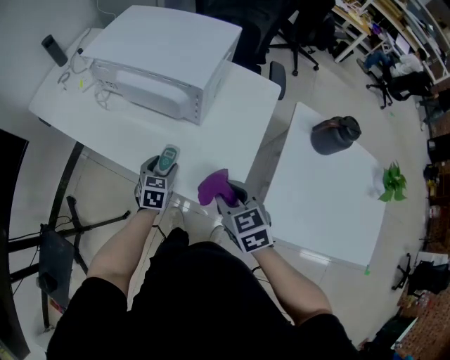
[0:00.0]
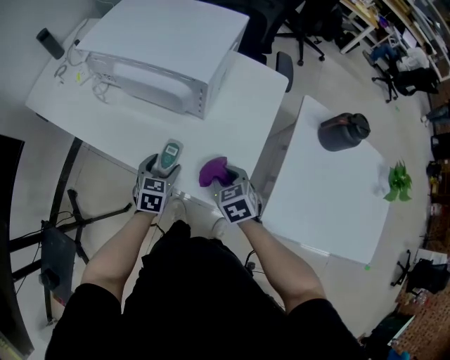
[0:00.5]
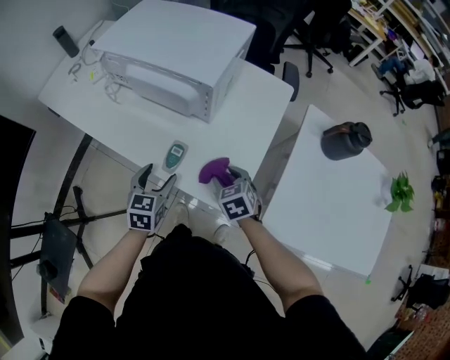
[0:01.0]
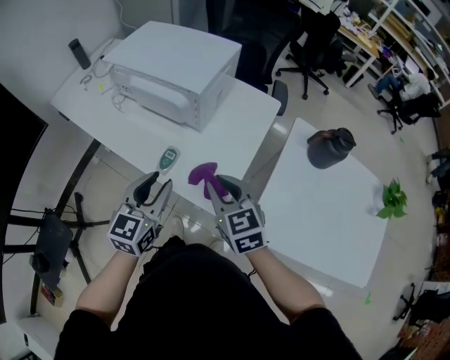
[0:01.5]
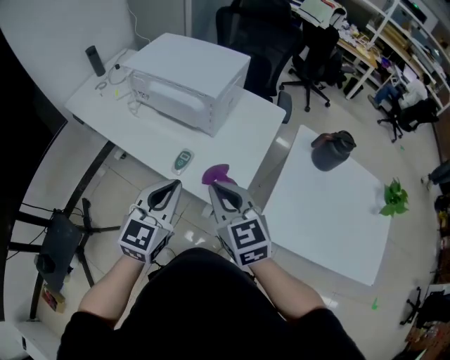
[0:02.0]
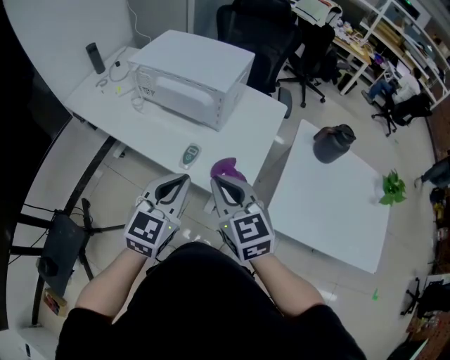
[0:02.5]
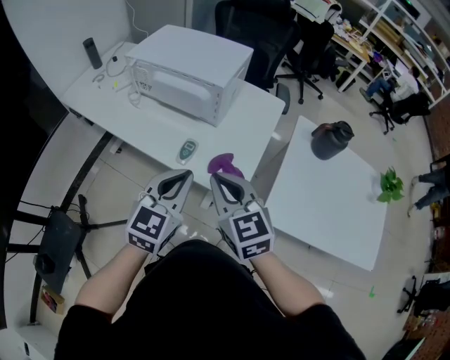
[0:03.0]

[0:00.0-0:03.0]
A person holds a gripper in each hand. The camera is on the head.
0:00.0 to 0:01.5: The right gripper shifts about 5 cm upward, while the left gripper goes some 25 cm upward and backward, and rotates approximately 30 degrees.
0:01.5 to 0:03.0: The right gripper shifts about 15 cm to the left, upward and backward. Meanwhile the left gripper shifts approximately 10 cm backward and upward, and closes its fingers.

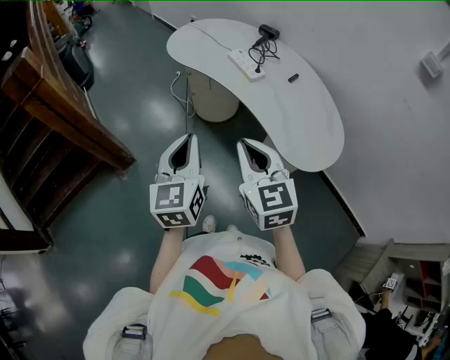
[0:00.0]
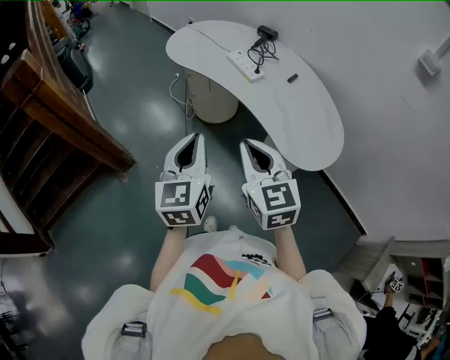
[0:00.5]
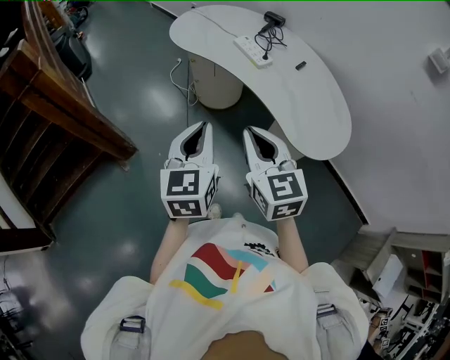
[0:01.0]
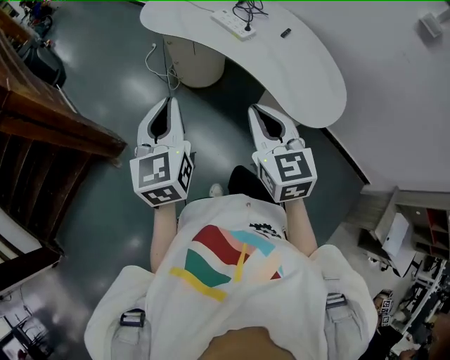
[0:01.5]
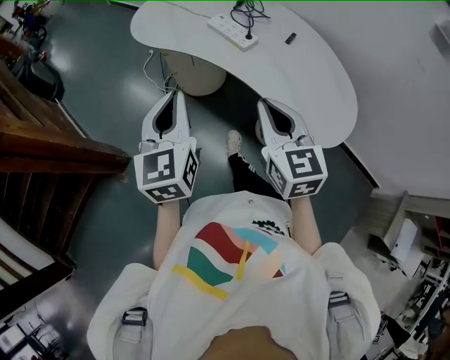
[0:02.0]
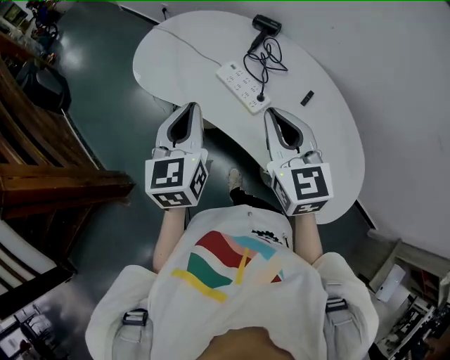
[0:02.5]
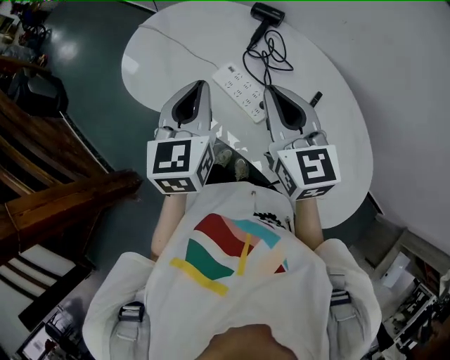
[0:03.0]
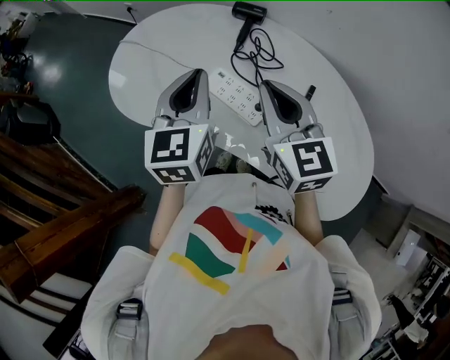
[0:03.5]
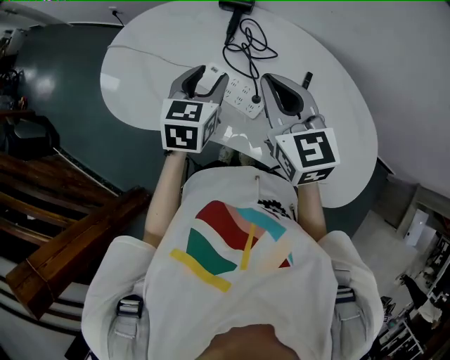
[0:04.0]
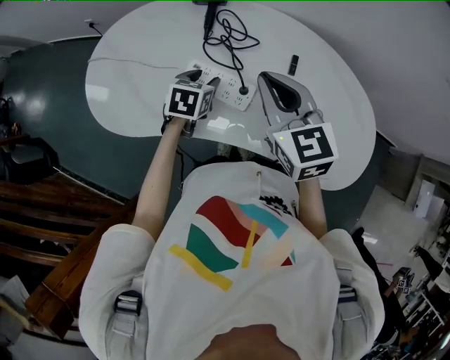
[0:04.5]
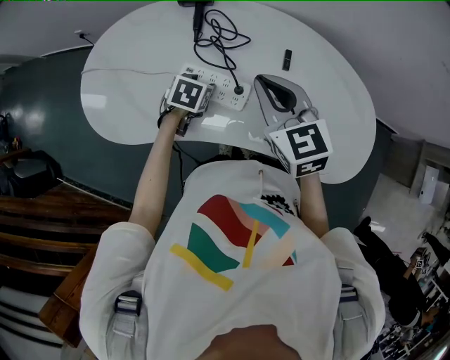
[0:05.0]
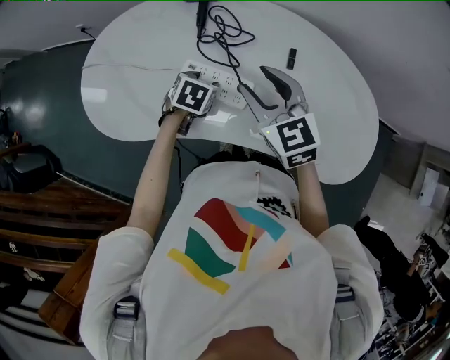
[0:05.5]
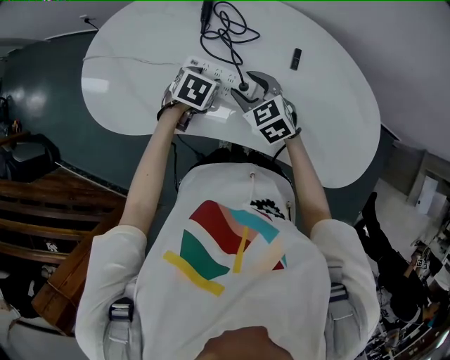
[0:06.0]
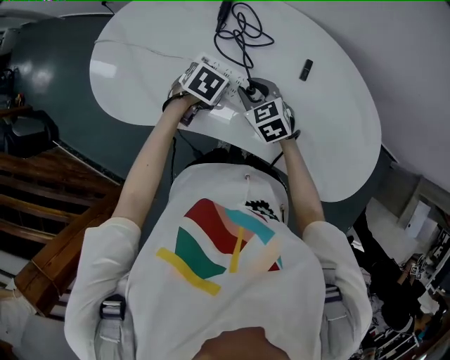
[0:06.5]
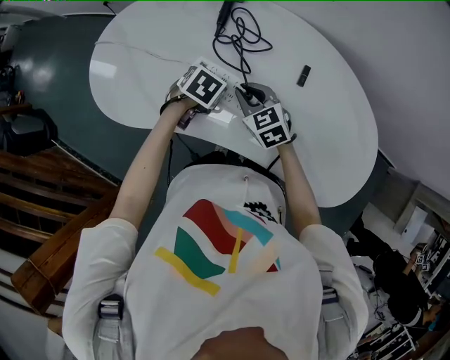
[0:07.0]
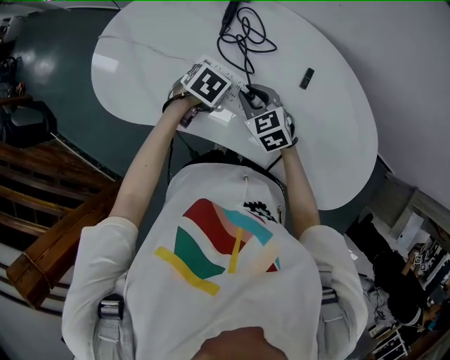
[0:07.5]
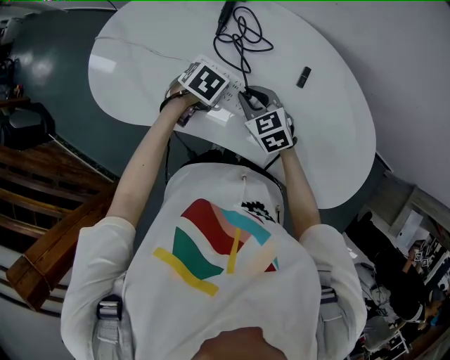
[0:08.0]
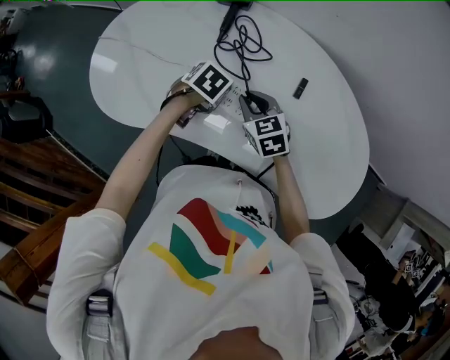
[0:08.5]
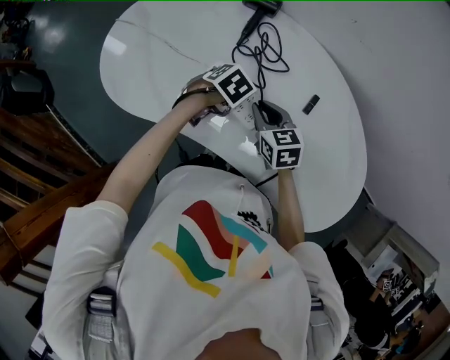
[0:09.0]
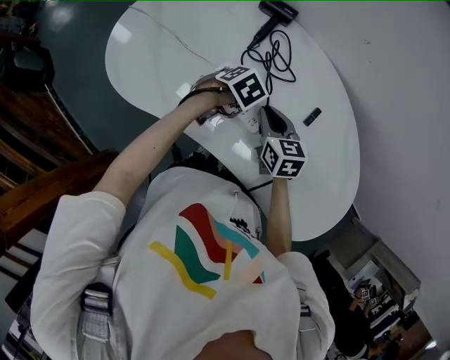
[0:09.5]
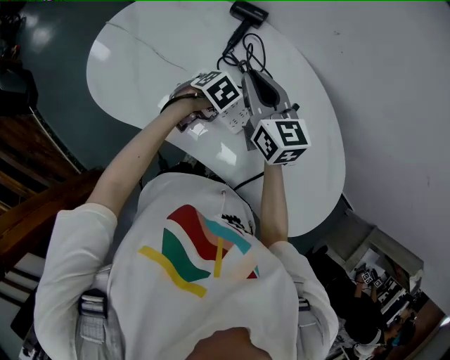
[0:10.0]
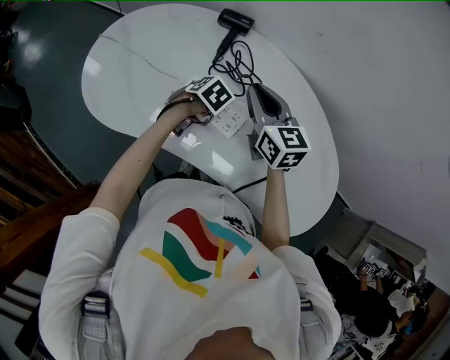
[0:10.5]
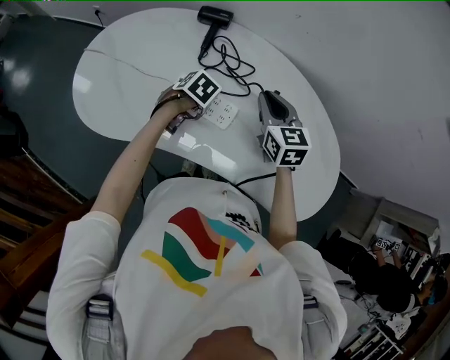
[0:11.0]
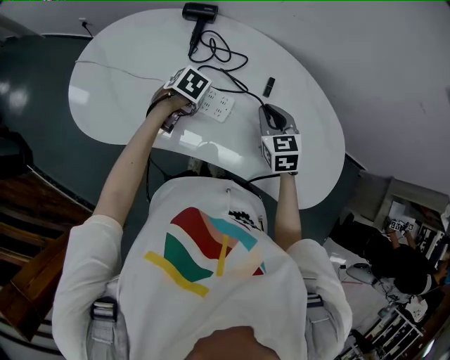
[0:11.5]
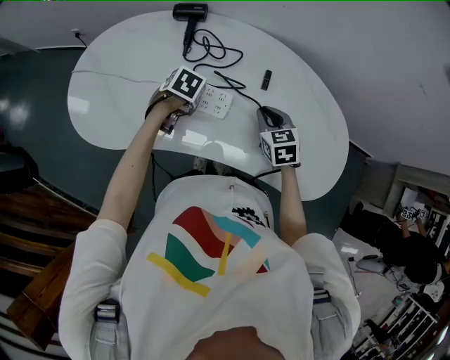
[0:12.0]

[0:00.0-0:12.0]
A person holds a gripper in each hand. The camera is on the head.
0:00.0 to 0:02.0: Both grippers move forward, roughly 15 cm.
0:02.0 to 0:04.0: The two grippers go some 40 cm forward. The left gripper changes its angle by about 40 degrees, and opens.
0:04.0 to 0:06.0: The grippers both shift downward by about 20 cm. The right gripper swivels about 30 degrees, and opens up; the left gripper tilts its fingers about 30 degrees downward.
0:06.0 to 0:08.0: The right gripper closes.
0:08.0 to 0:10.0: The right gripper shifts approximately 15 cm upward, and rotates approximately 30 degrees.
0:10.0 to 0:12.0: The right gripper ends up roughly 25 cm from where it was, and tilts its fingers about 30 degrees downward.

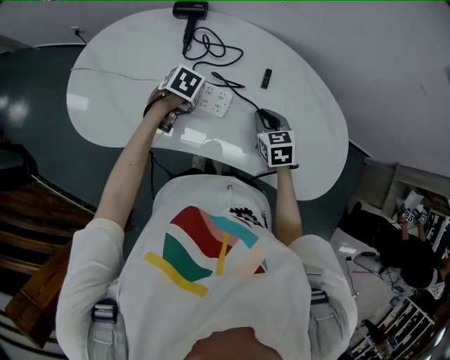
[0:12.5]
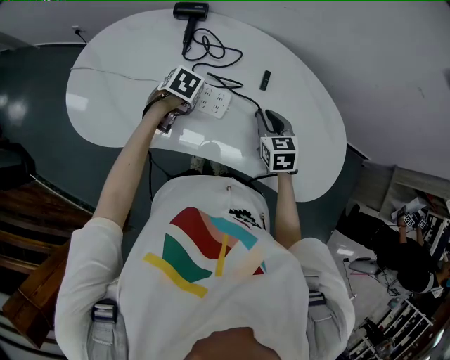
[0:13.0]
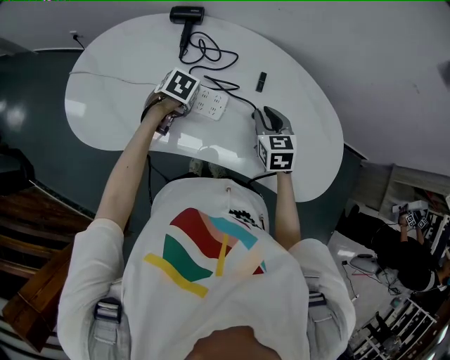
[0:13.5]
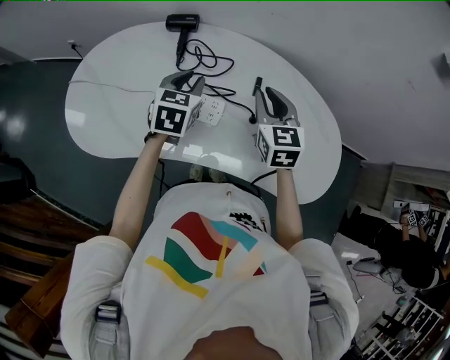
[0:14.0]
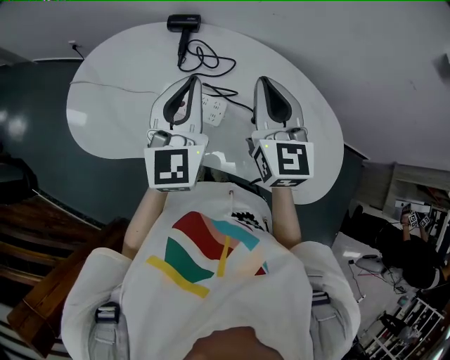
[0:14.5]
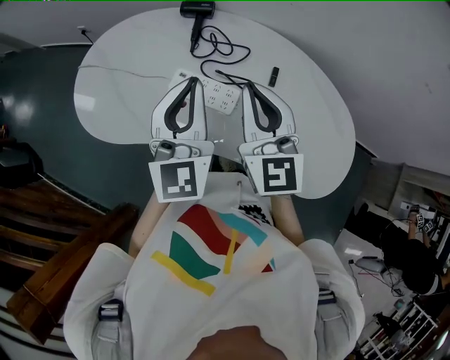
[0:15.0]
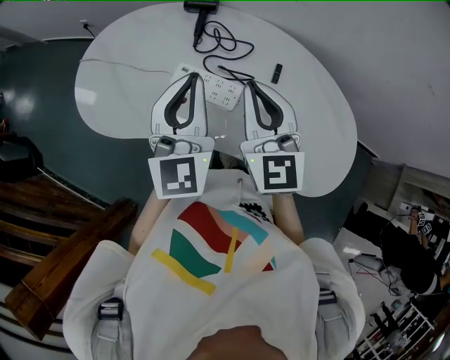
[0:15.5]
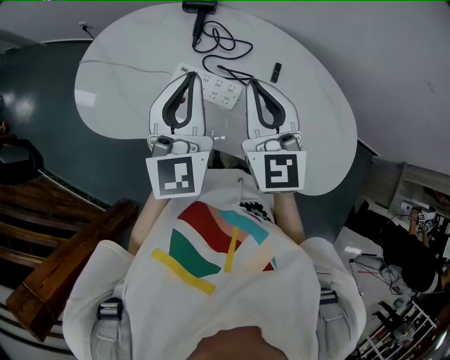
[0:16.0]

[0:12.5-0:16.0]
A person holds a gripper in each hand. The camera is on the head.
0:12.5 to 0:14.5: Both grippers move upward, about 30 cm. The left gripper angles its fingers upward, by approximately 70 degrees, and closes. Meanwhile the right gripper points its fingers about 40 degrees further upward.
0:14.5 to 0:16.0: The right gripper goes roughly 5 cm to the left.

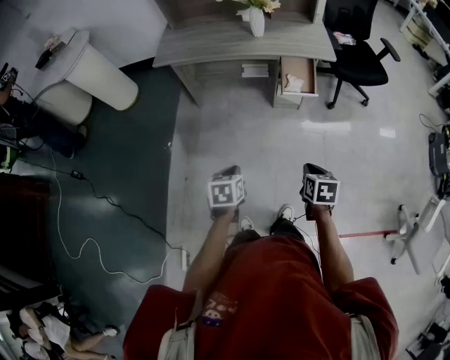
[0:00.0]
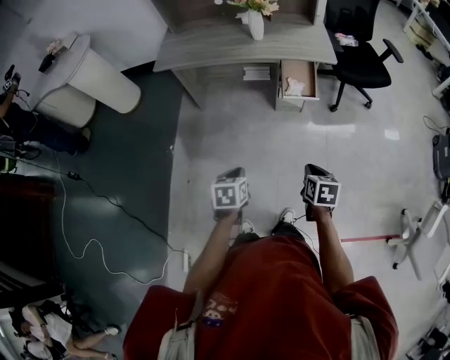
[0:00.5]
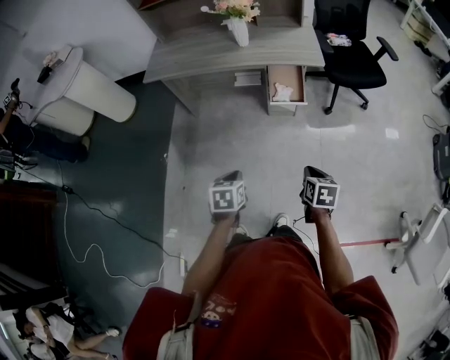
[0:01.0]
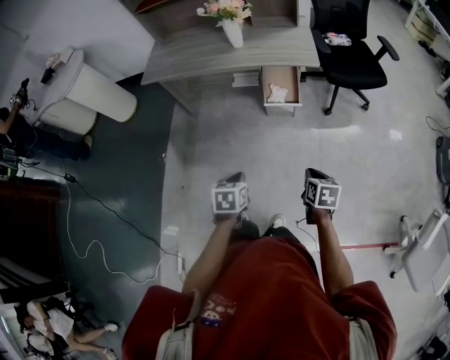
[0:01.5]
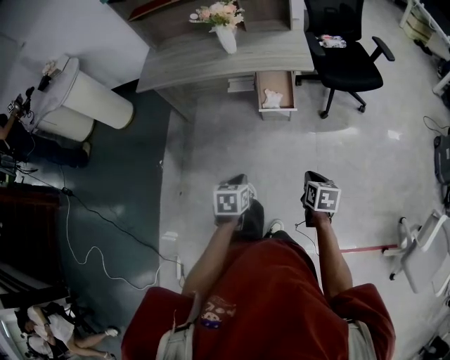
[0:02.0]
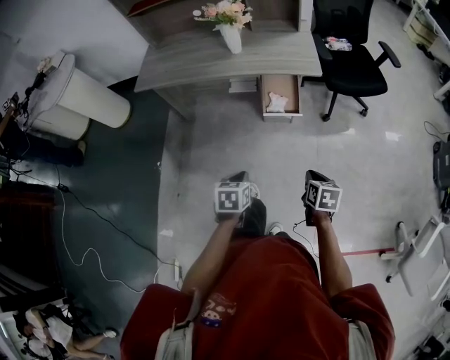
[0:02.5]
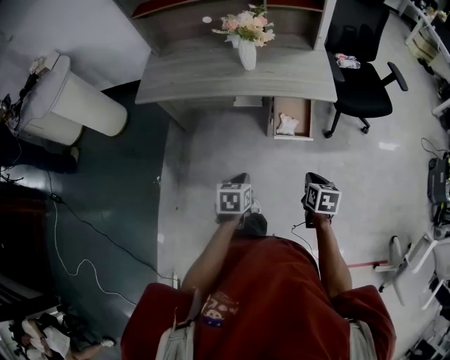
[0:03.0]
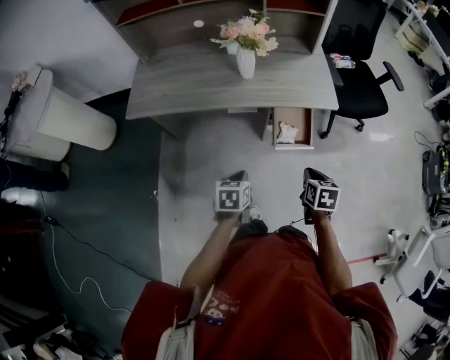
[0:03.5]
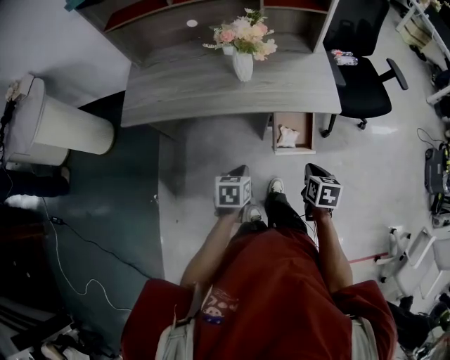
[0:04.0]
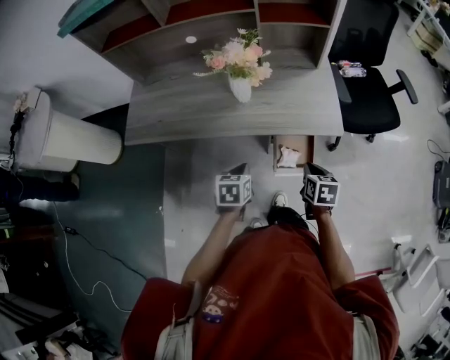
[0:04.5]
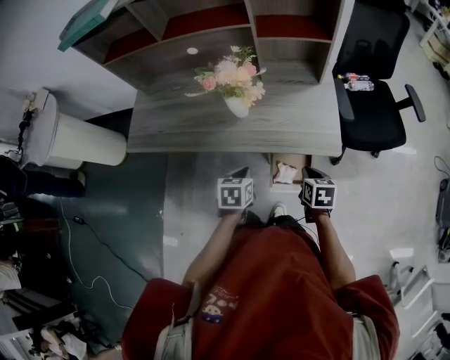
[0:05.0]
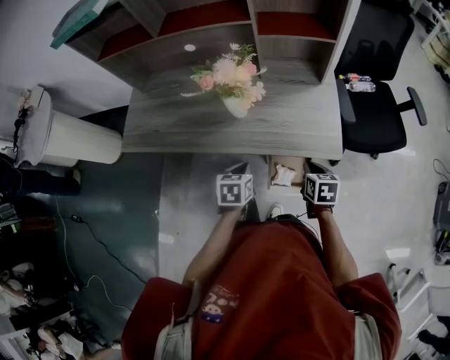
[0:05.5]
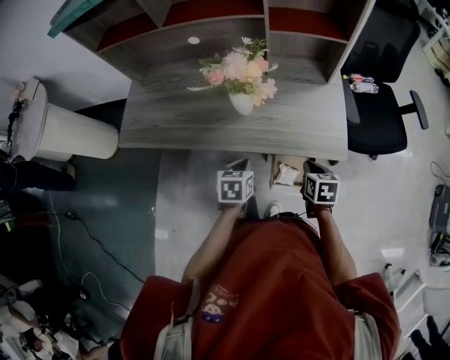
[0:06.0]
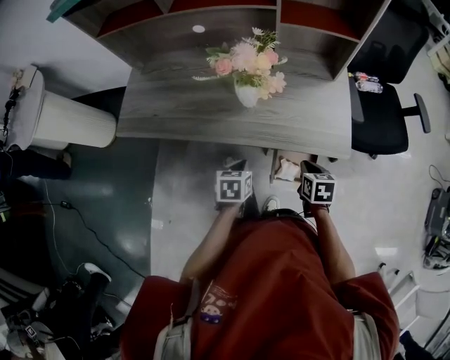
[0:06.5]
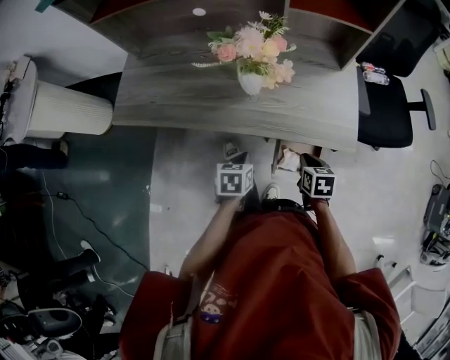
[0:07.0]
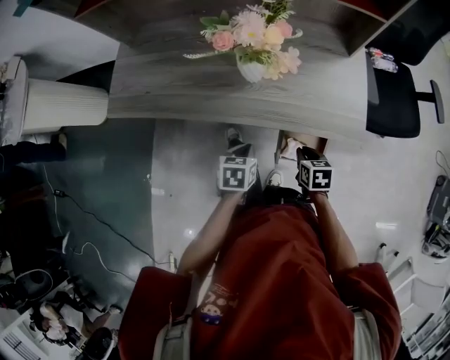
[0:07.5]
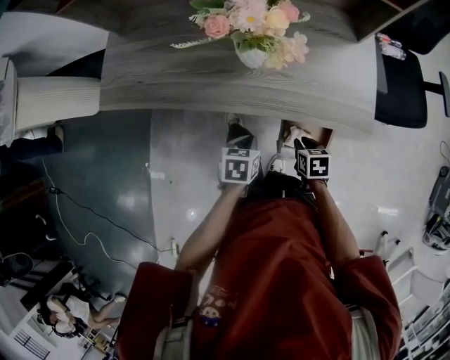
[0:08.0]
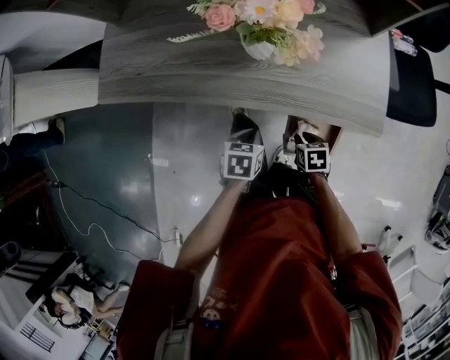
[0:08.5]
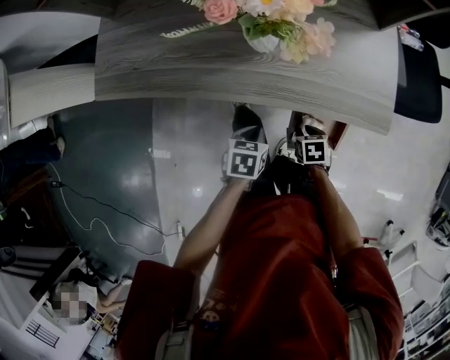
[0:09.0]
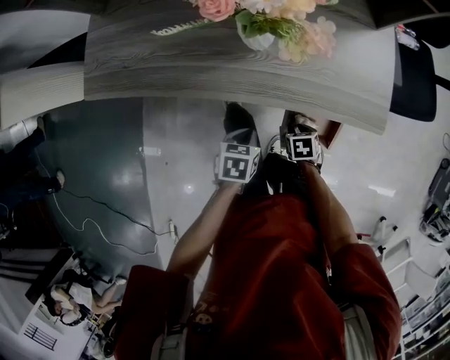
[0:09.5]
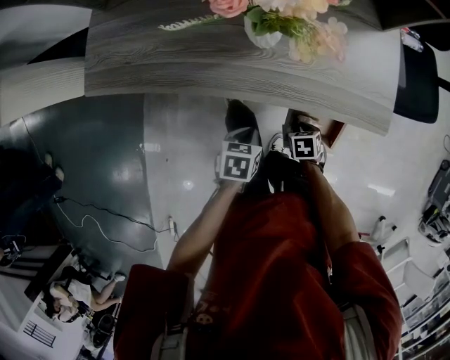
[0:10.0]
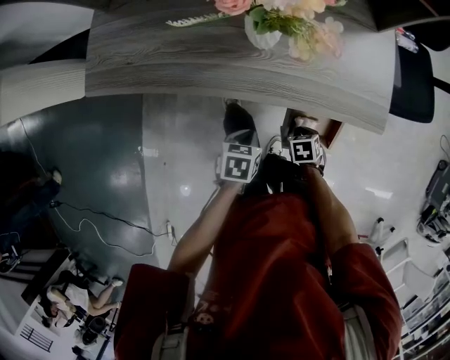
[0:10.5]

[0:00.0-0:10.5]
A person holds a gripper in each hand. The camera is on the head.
0:00.0 to 0:02.0: Both grippers move to the right, about 20 cm.
0:02.0 to 0:04.0: The two grippers go about 35 cm forward and to the left.
0:04.0 to 0:06.5: Both grippers travel together forward, about 20 cm.
0:06.5 to 0:08.5: The left gripper goes some 10 cm downward; the right gripper is displaced downward by some 15 cm.
0:08.5 to 0:10.5: The right gripper shifts by some 5 cm.
